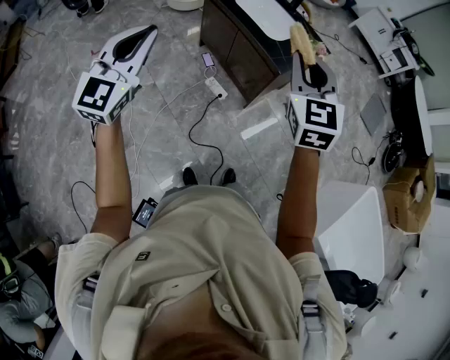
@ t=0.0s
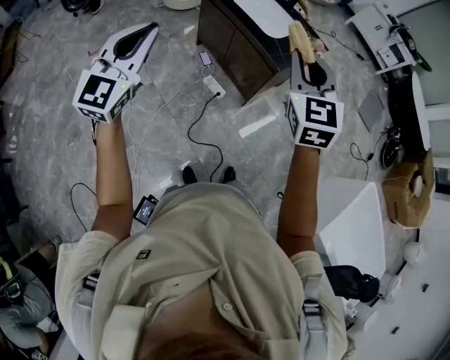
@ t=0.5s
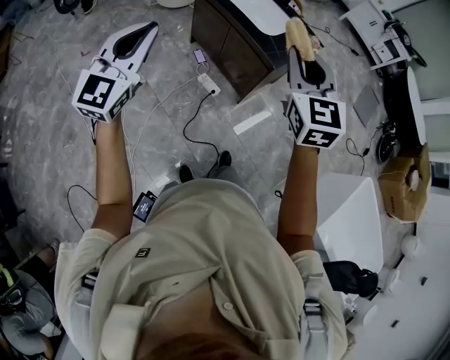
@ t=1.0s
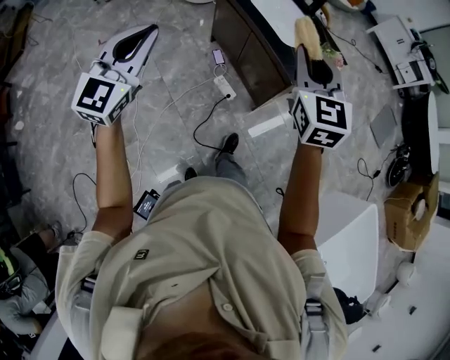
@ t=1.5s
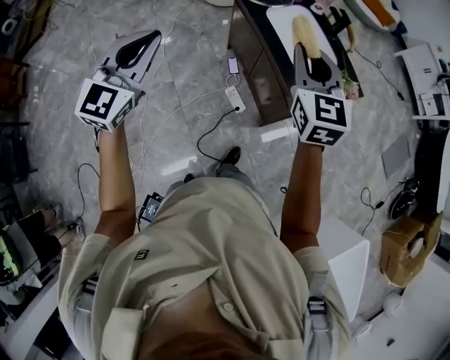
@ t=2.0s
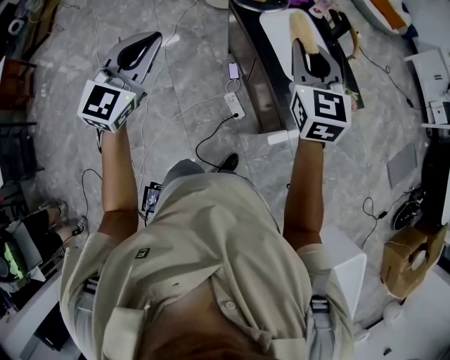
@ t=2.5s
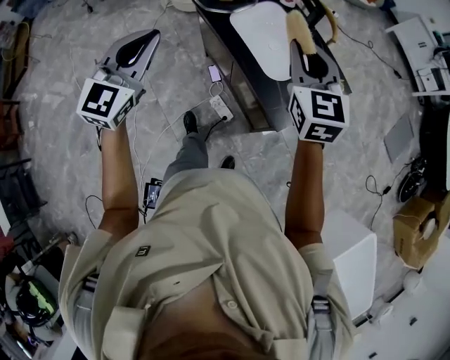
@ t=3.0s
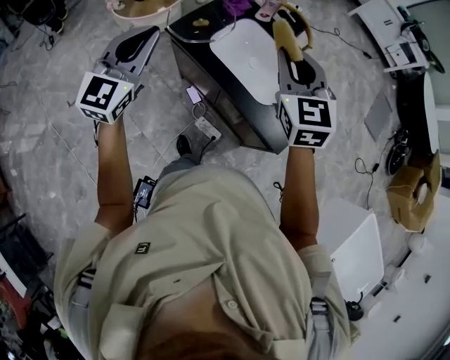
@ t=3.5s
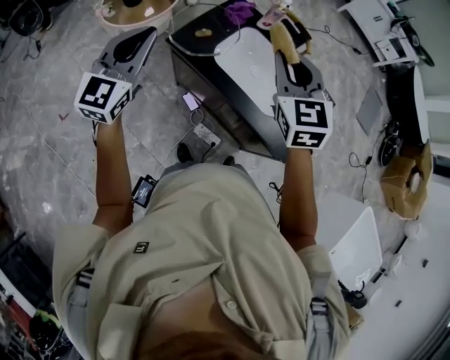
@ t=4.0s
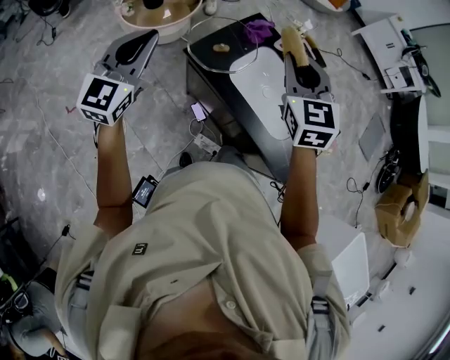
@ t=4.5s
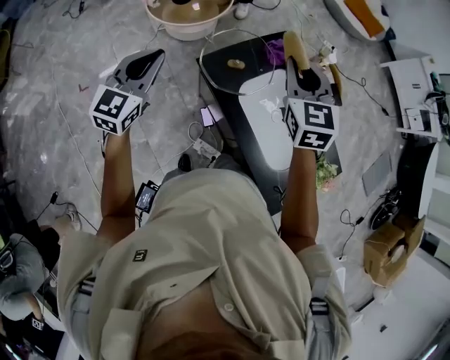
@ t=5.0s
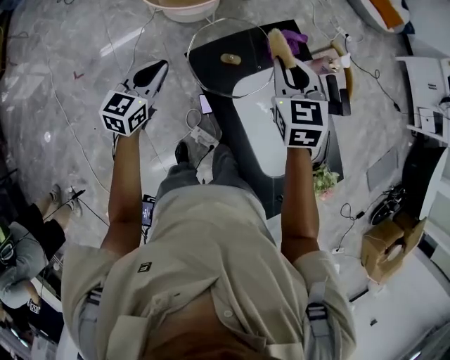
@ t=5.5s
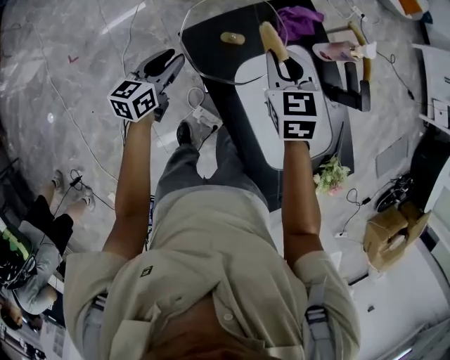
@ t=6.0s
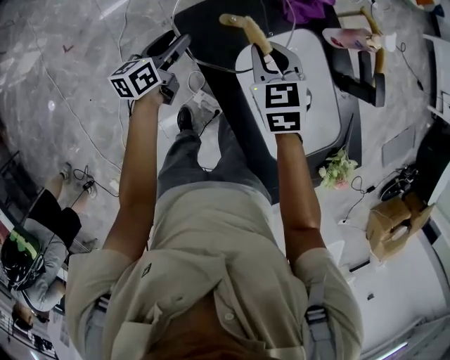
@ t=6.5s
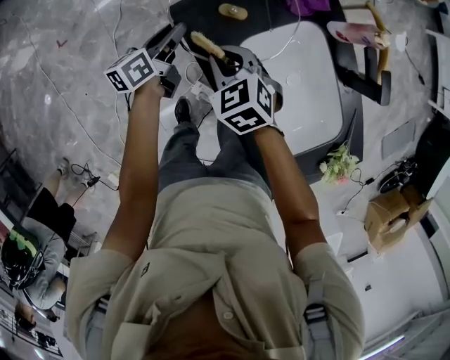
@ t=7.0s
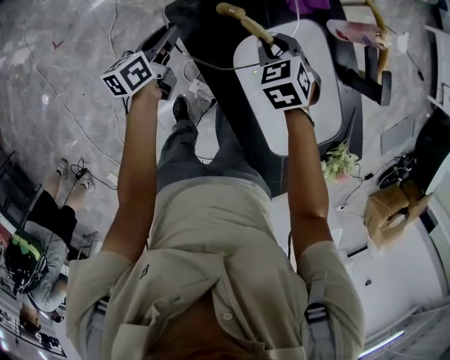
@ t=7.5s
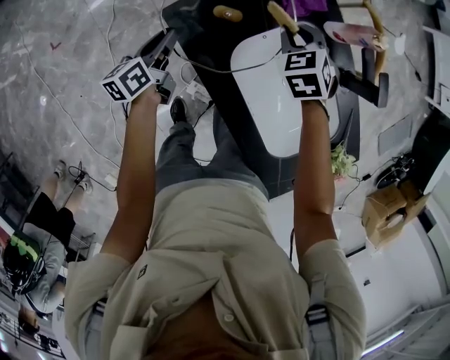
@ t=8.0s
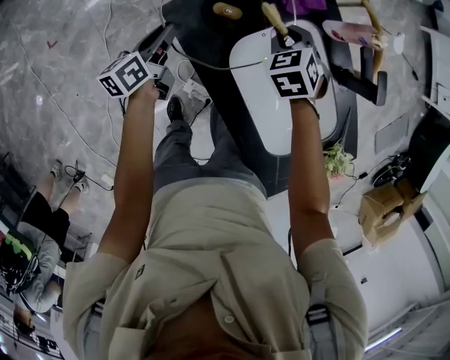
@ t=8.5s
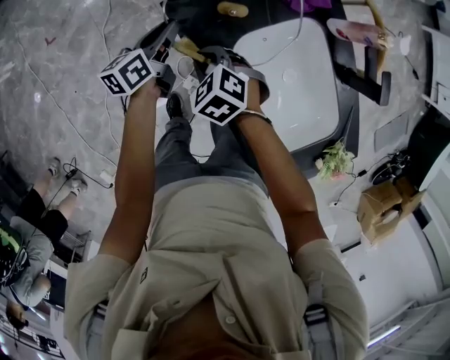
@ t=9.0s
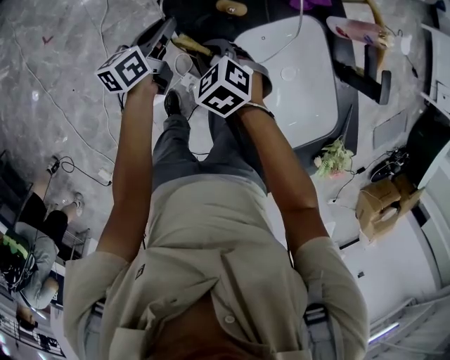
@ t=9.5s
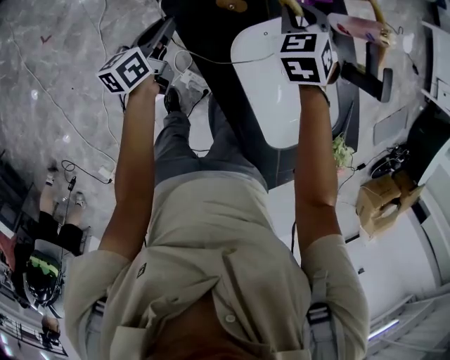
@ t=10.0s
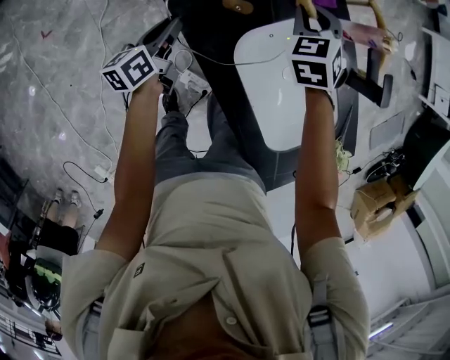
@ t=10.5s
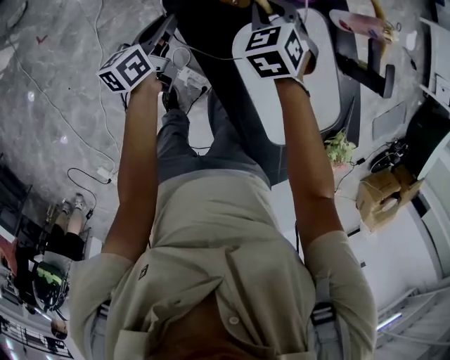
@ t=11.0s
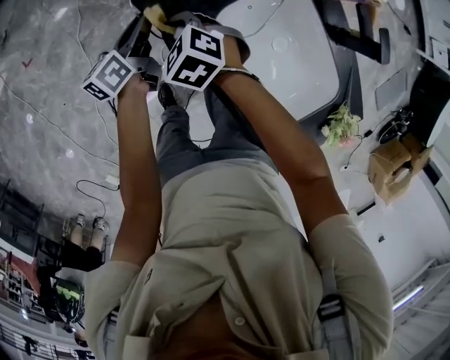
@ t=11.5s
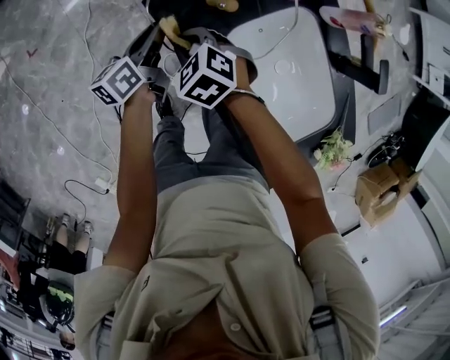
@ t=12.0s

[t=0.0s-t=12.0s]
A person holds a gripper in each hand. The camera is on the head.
t=0.0s to t=2.0s: Both grippers travel together forward, some 25 cm.
t=2.0s to t=4.0s: The two grippers go roughly 40 cm forward. The right gripper rotates roughly 20 degrees. Meanwhile the left gripper changes its angle by approximately 20 degrees.
t=4.0s to t=6.0s: The grippers both shift downward and forward by approximately 40 cm. The right gripper turns by about 30 degrees. Meanwhile the left gripper rolls counterclockwise, seen from behind, by roughly 40 degrees, and opens.
t=6.0s to t=8.0s: Both grippers travel together downward, approximately 10 cm. The left gripper changes its angle by some 30 degrees, and opens and closes again, while the right gripper moves some 10 cm to the left and comes back, and swivels approximately 20 degrees.
t=10.0s to t=12.0s: The right gripper ends up some 25 cm from where it was, and changes its angle by some 30 degrees.

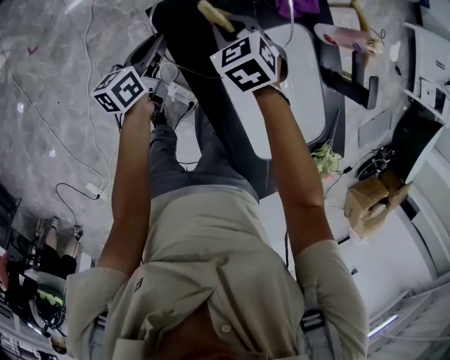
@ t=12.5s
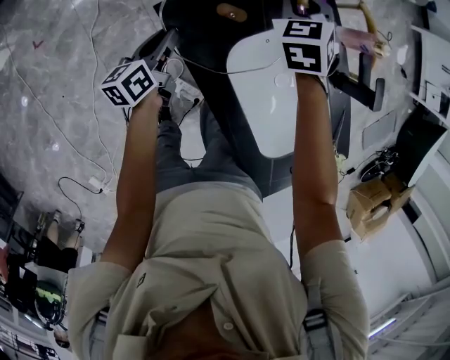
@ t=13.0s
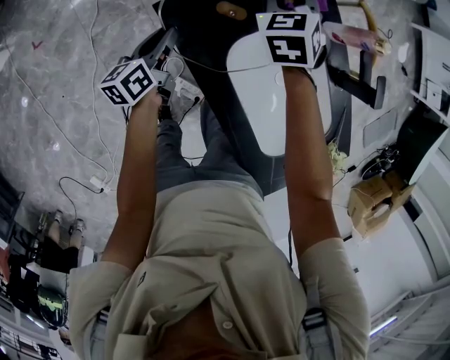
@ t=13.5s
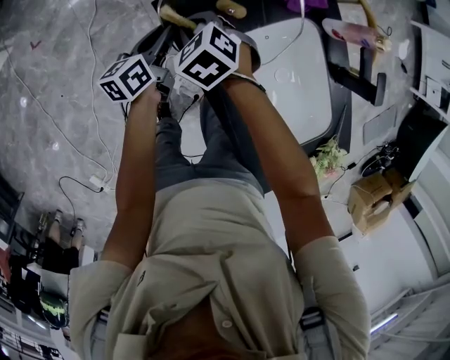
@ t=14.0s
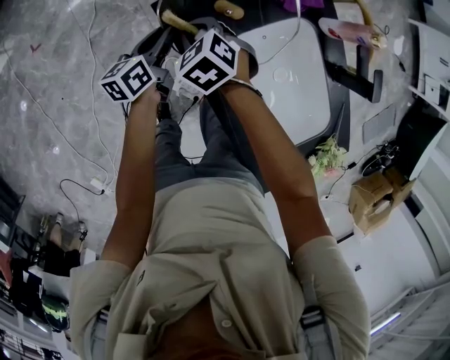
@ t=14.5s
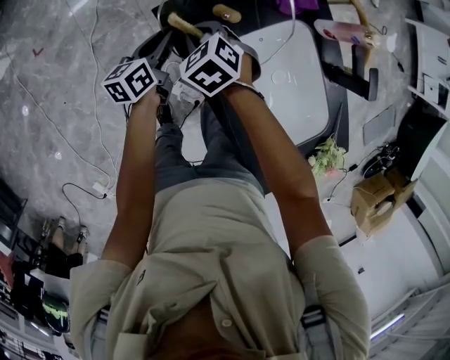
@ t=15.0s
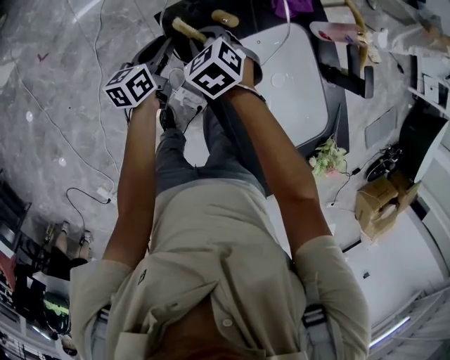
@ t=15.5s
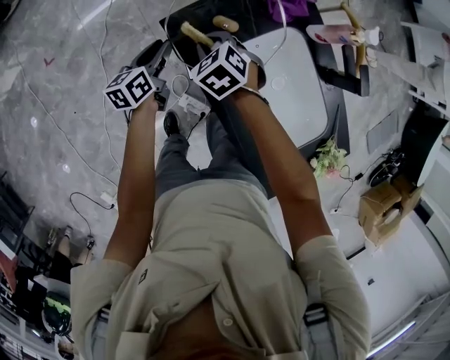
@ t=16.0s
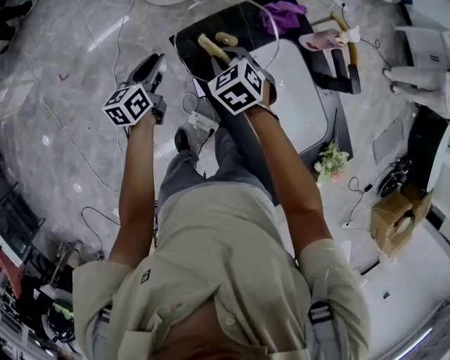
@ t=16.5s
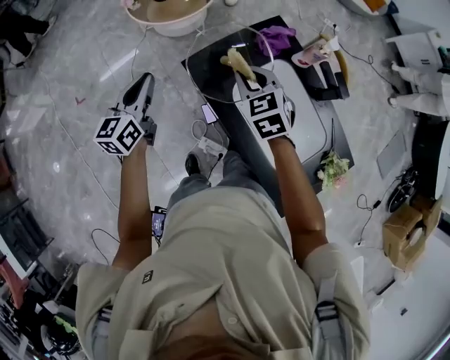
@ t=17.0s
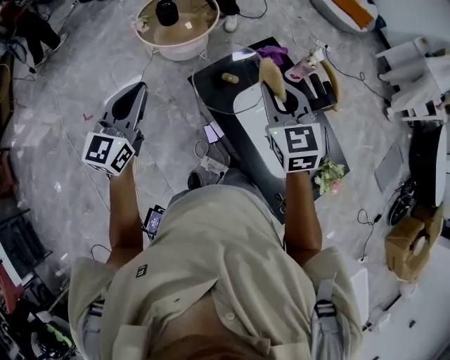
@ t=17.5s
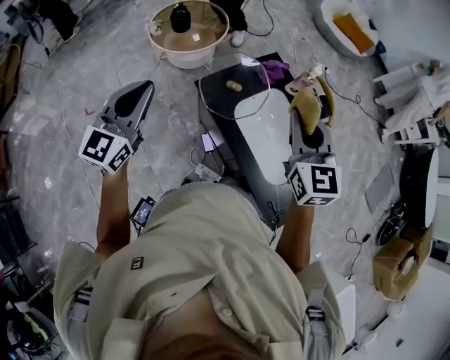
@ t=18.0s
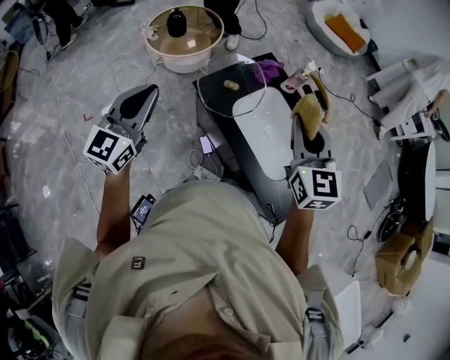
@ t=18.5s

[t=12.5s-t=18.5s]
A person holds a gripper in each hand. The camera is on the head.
t=12.5s to t=14.5s: The right gripper moves about 5 cm upward and comes back.
t=14.5s to t=16.5s: The left gripper travels upward and to the left by roughly 15 cm. Meanwhile the right gripper moves upward and to the right, roughly 10 cm.
t=16.5s to t=18.5s: Both grippers travel together upward and backward, roughly 40 cm. The left gripper rotates around the line of its fingers by some 40 degrees, clockwise from behind, and closes up, while the right gripper tips its fingers upward by approximately 40 degrees.

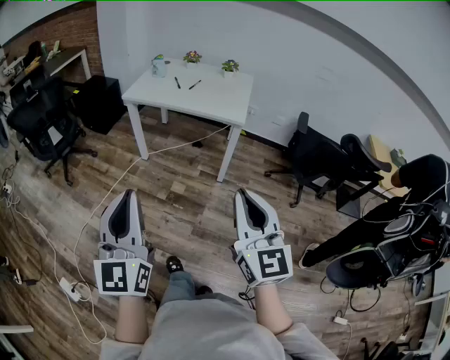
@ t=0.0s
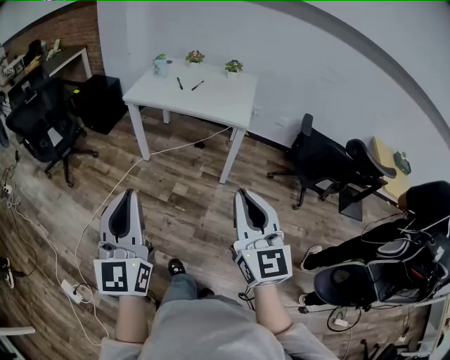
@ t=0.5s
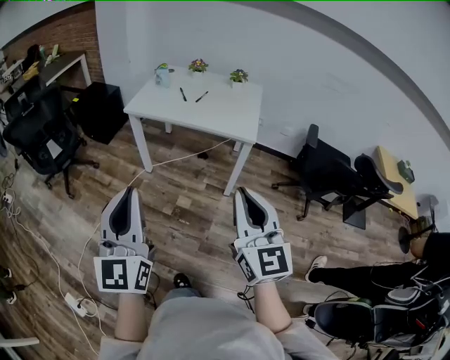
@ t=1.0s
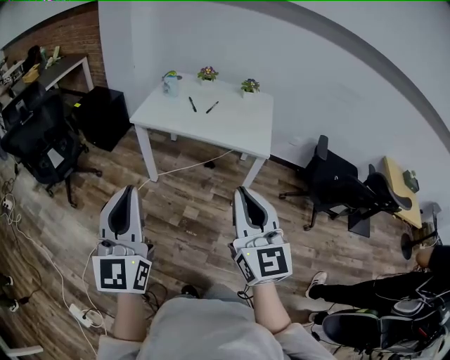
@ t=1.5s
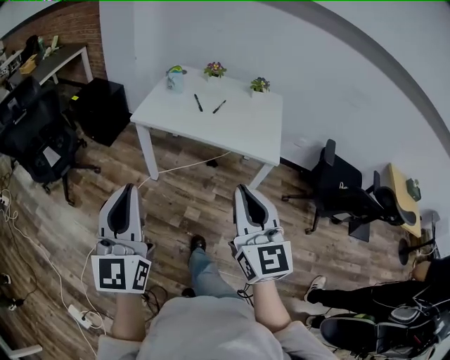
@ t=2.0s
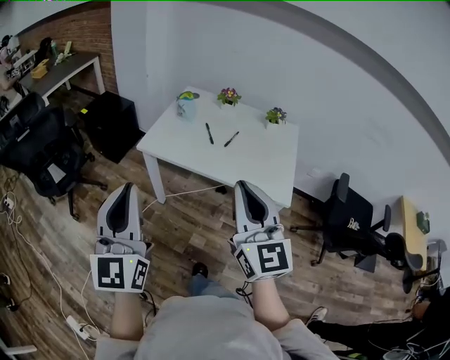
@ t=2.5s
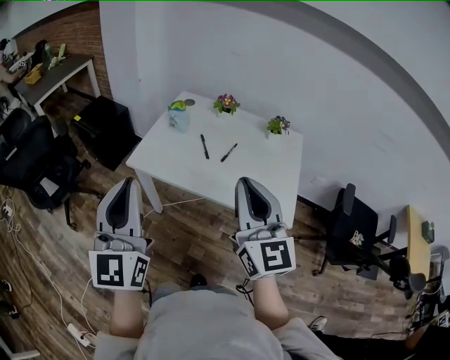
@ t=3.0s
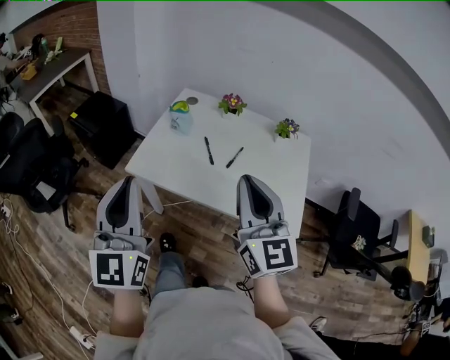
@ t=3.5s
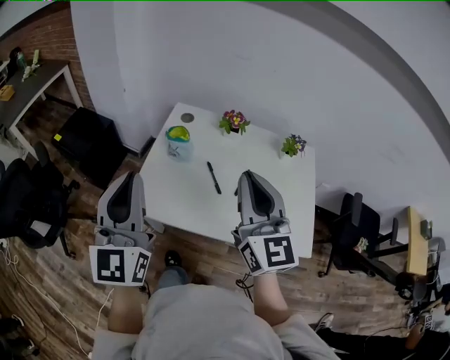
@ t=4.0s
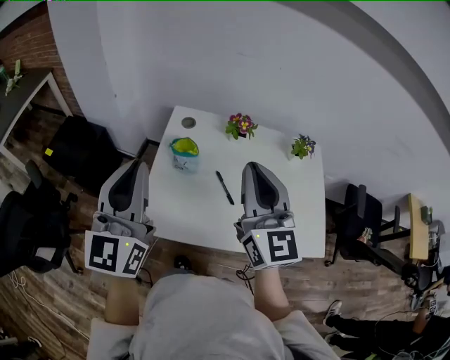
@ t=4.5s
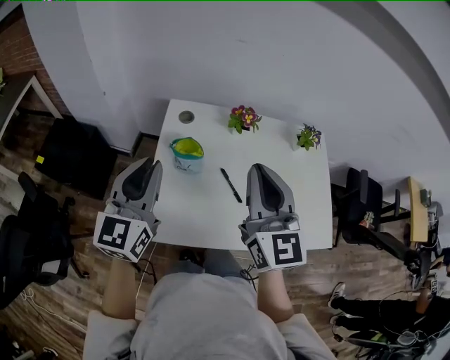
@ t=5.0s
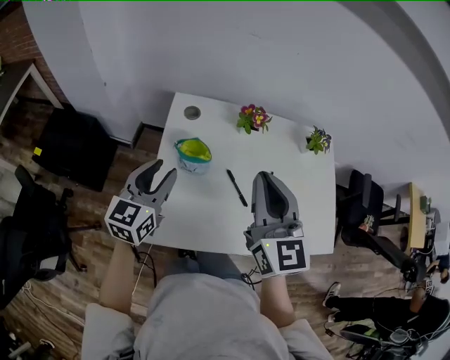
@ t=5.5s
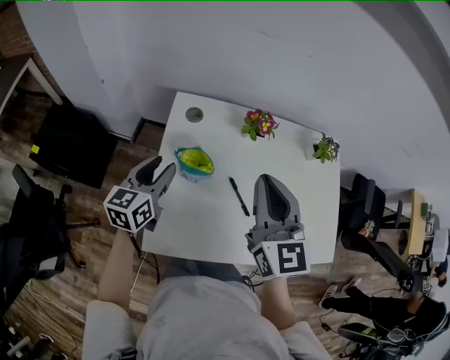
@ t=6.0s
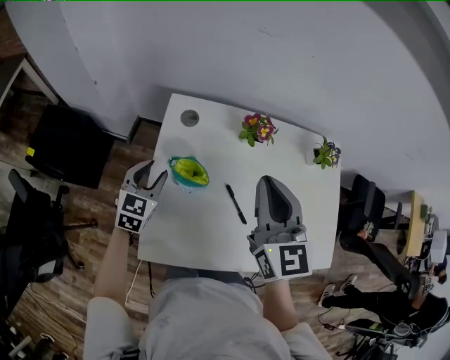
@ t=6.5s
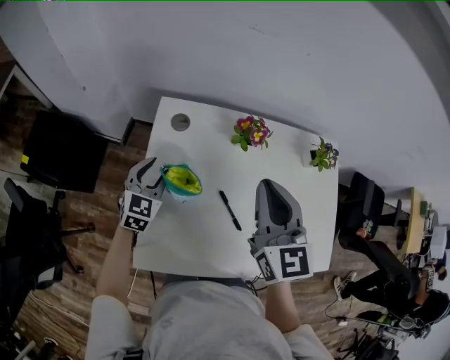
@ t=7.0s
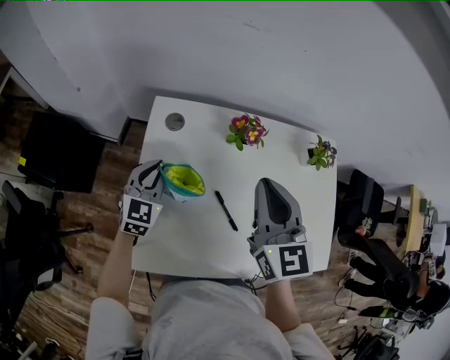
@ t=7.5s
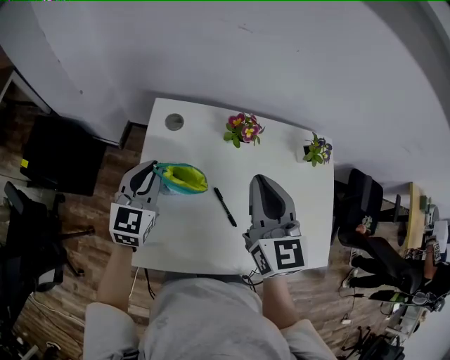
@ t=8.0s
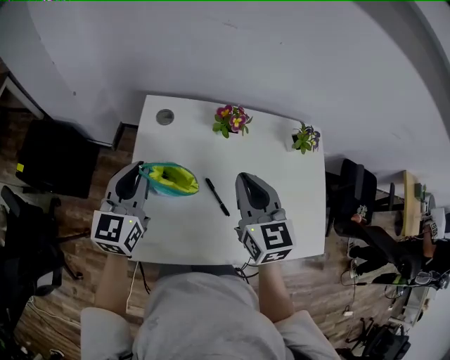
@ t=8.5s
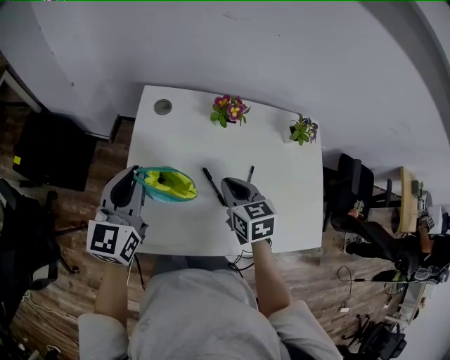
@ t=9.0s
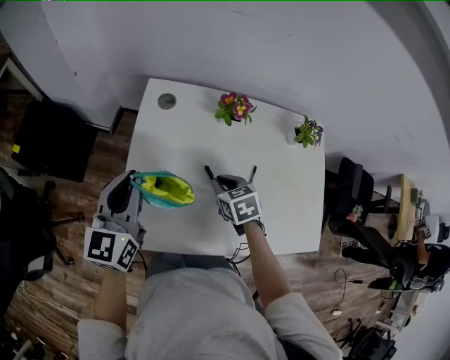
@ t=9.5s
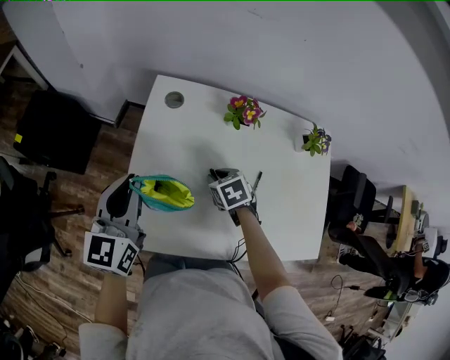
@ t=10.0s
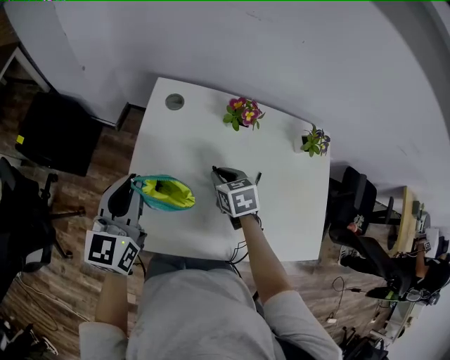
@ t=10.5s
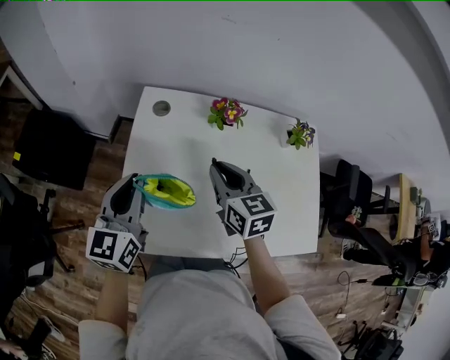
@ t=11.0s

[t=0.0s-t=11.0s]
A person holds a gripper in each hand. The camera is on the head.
t=0.0s to t=2.0s: Both grippers travel together forward, roughly 30 cm.
t=2.0s to t=3.5s: The grippers both shift forward by roughly 35 cm.
t=3.5s to t=5.5s: The right gripper shifts by some 35 cm, and changes its angle by about 20 degrees; the left gripper changes place by about 50 cm, swivels about 50 degrees, and opens its fingers.
t=5.5s to t=7.5s: The two grippers go approximately 15 cm forward and downward. The left gripper rotates some 20 degrees.
t=7.5s to t=9.0s: The left gripper is displaced upward and backward by approximately 15 cm, and changes its angle by roughly 30 degrees. Meanwhile the right gripper shifts approximately 15 cm downward and backward, and swivels some 30 degrees.
t=9.0s to t=11.0s: The right gripper travels upward by approximately 5 cm.
